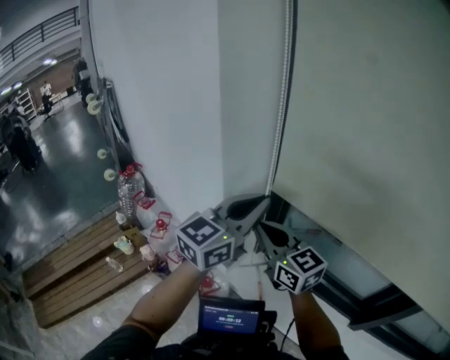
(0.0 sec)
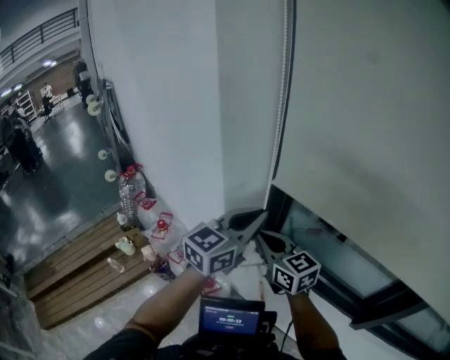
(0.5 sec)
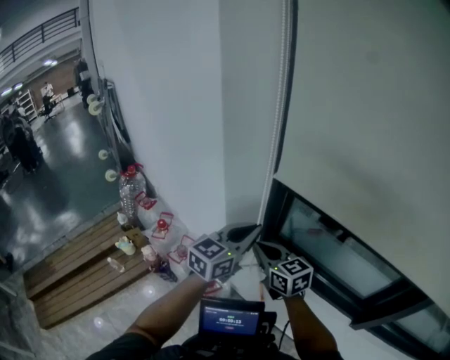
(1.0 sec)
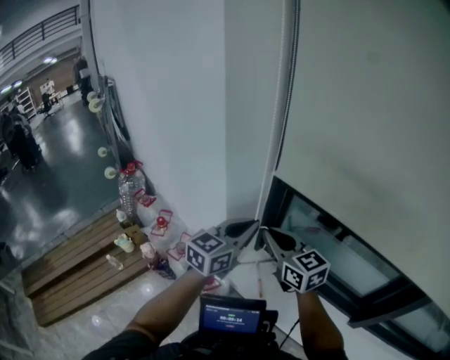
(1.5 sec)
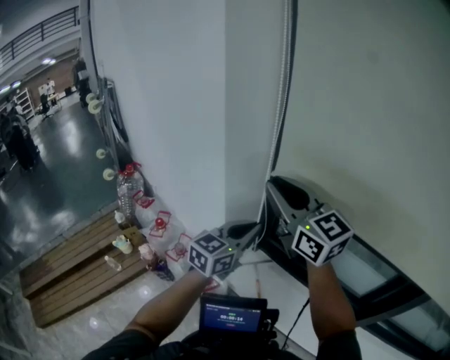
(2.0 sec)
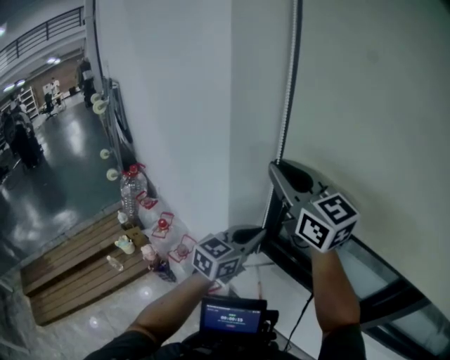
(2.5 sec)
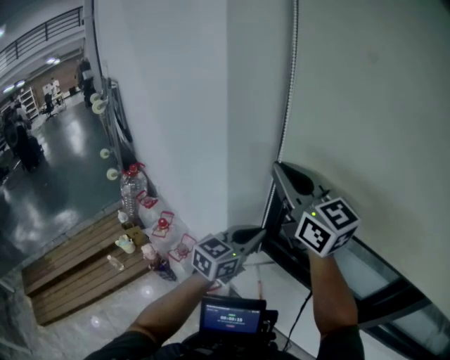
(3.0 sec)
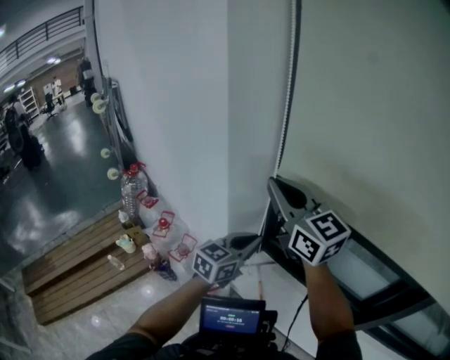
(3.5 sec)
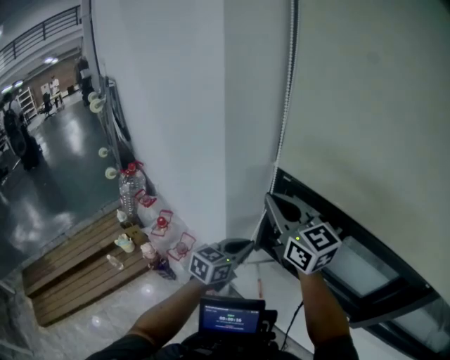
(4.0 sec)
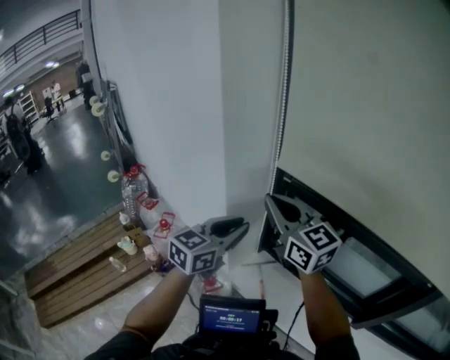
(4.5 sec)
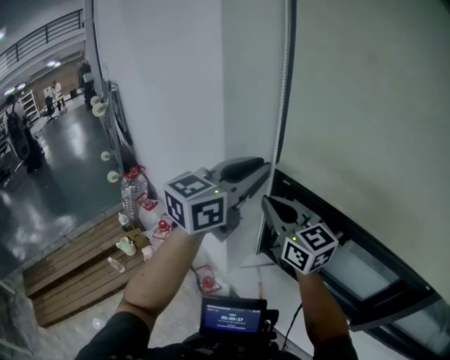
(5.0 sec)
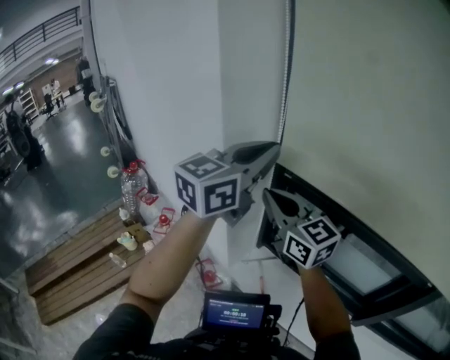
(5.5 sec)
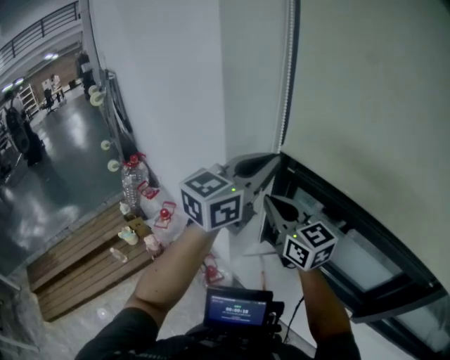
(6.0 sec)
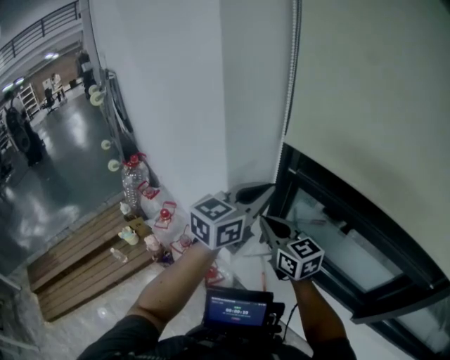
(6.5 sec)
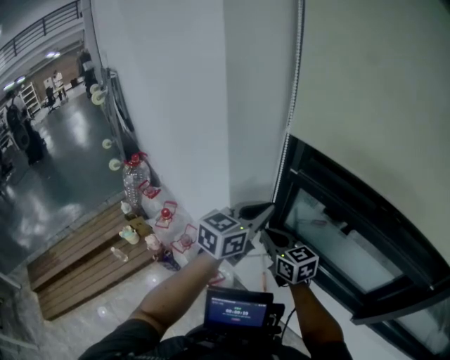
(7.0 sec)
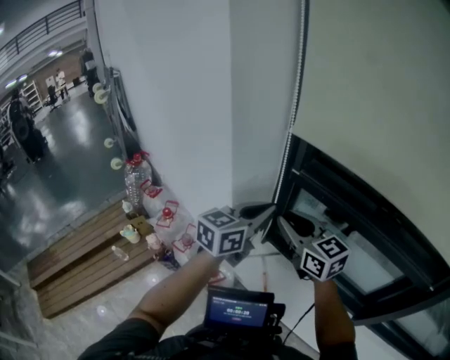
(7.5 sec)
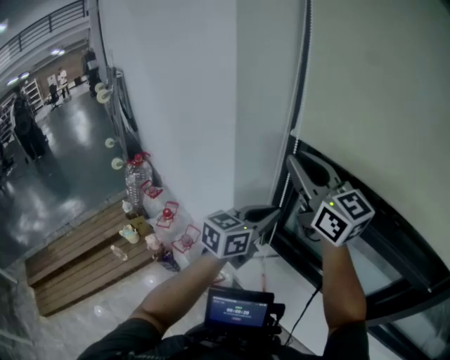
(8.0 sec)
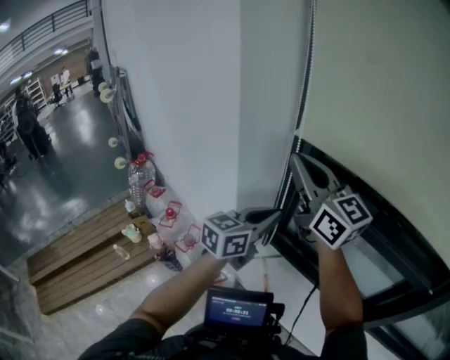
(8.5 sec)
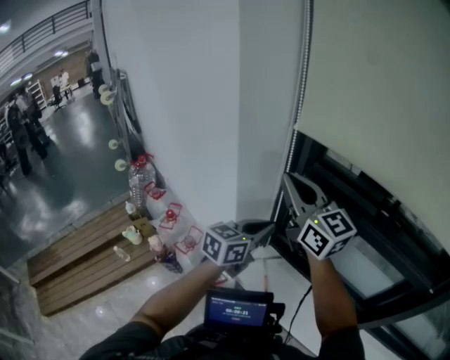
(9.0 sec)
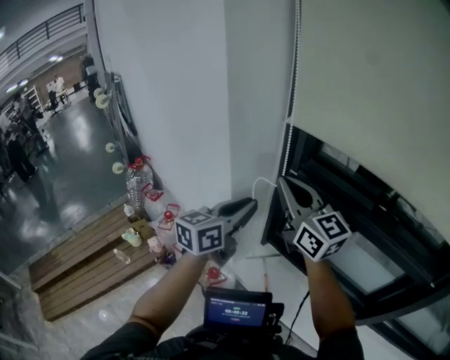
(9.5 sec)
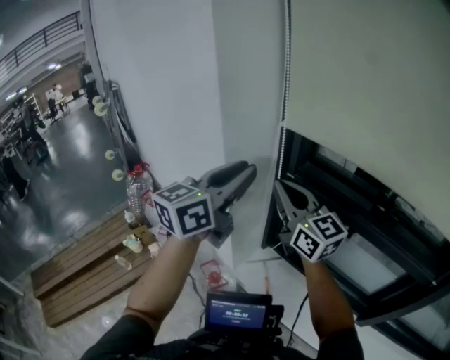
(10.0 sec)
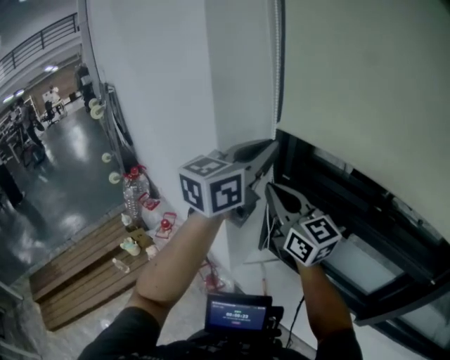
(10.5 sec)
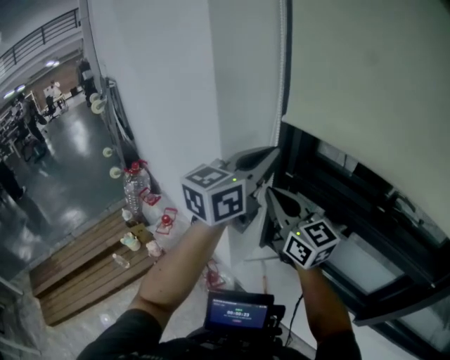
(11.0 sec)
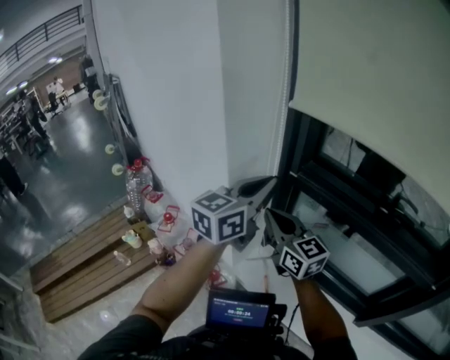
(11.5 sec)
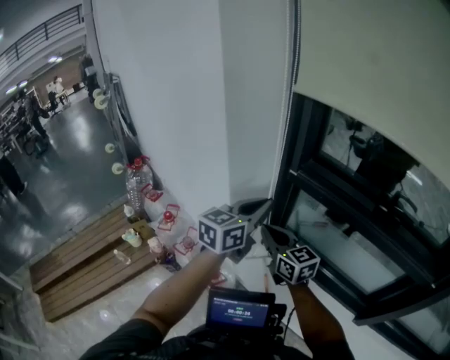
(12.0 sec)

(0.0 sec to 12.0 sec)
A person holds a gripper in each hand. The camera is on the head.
0.0 sec - 2.0 sec: The left gripper shifts approximately 10 cm downward. The right gripper travels upward by about 10 cm.
2.0 sec - 4.0 sec: The left gripper goes roughly 10 cm downward, while the right gripper is displaced downward by roughly 5 cm.
4.0 sec - 6.0 sec: The left gripper goes some 25 cm upward, and rotates approximately 20 degrees.
6.0 sec - 8.0 sec: The right gripper goes about 15 cm upward; the left gripper goes some 15 cm downward.
8.0 sec - 10.0 sec: The right gripper travels downward by approximately 5 cm. Meanwhile the left gripper goes roughly 15 cm upward and to the left, and opens its fingers.
10.0 sec - 12.0 sec: The grippers both shift downward by roughly 15 cm. The left gripper closes its fingers.

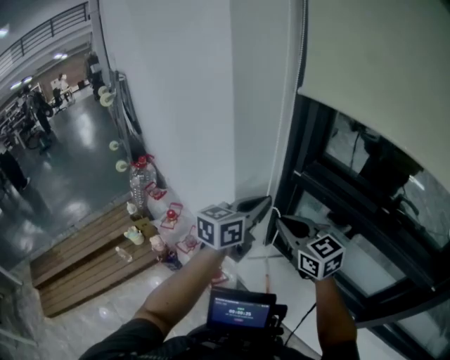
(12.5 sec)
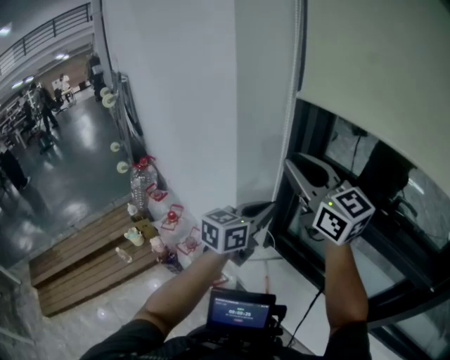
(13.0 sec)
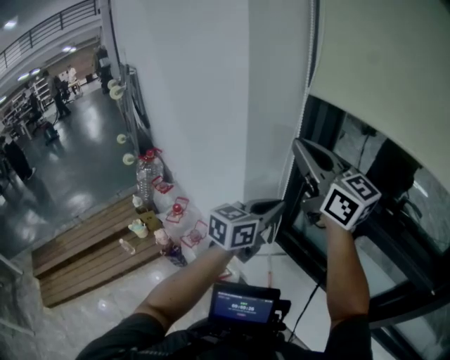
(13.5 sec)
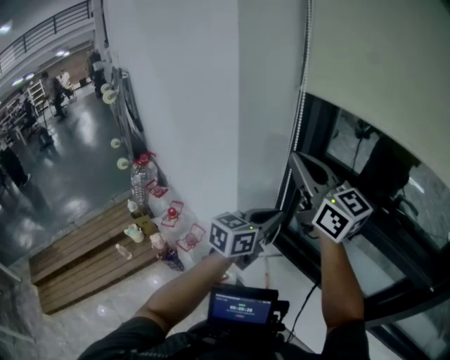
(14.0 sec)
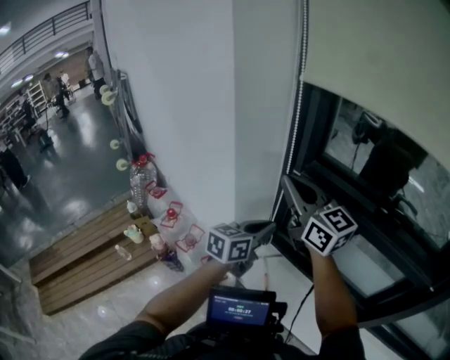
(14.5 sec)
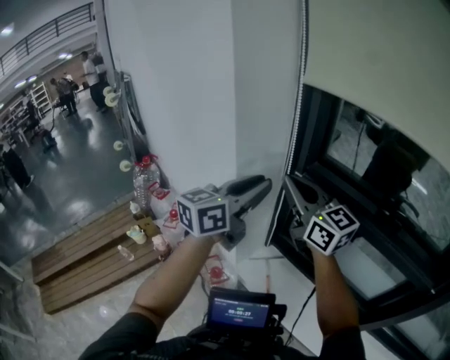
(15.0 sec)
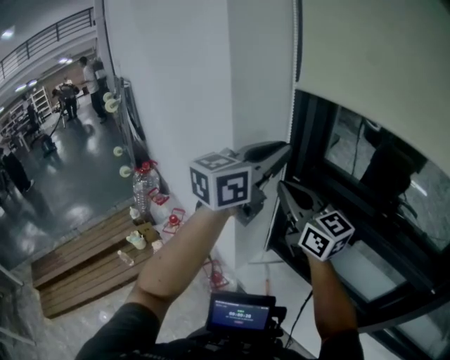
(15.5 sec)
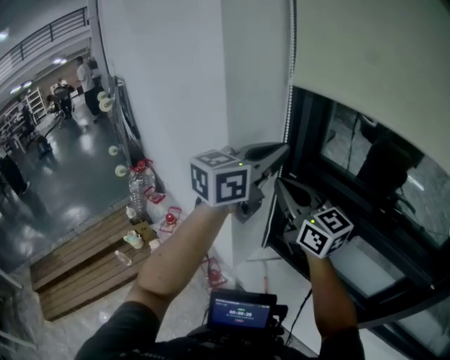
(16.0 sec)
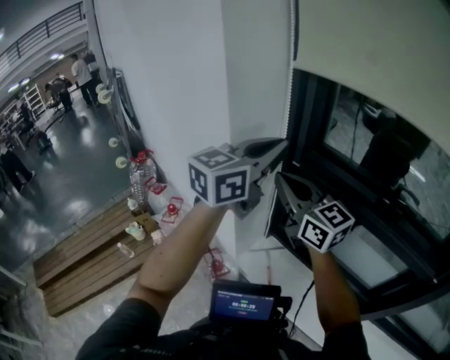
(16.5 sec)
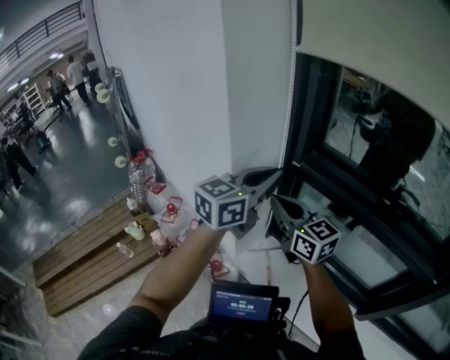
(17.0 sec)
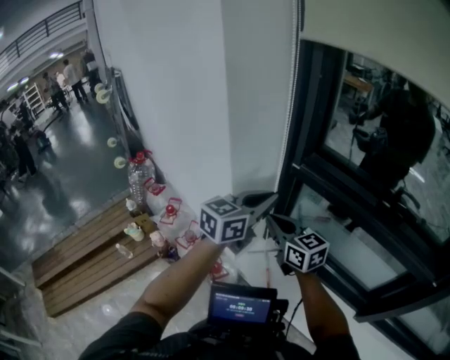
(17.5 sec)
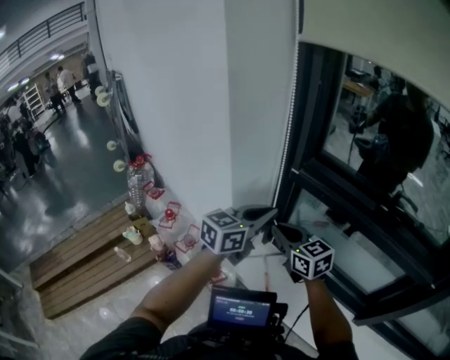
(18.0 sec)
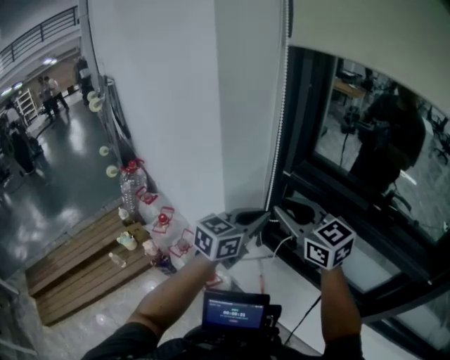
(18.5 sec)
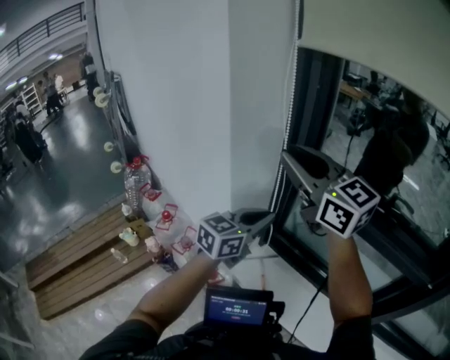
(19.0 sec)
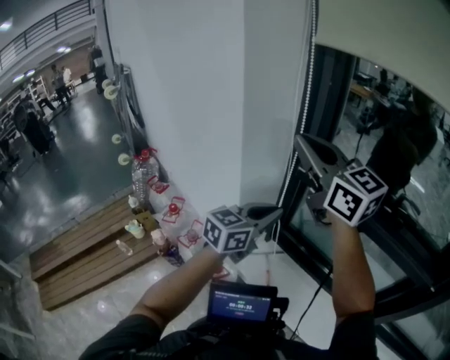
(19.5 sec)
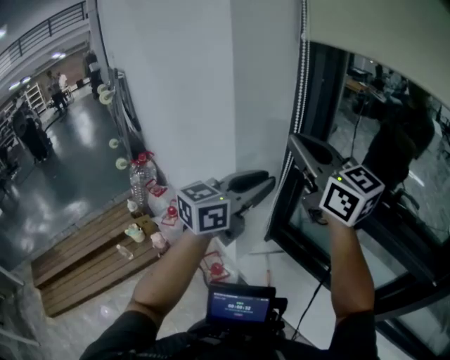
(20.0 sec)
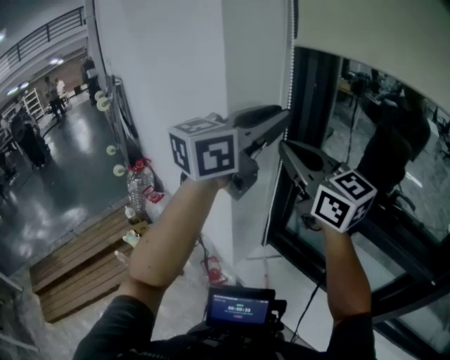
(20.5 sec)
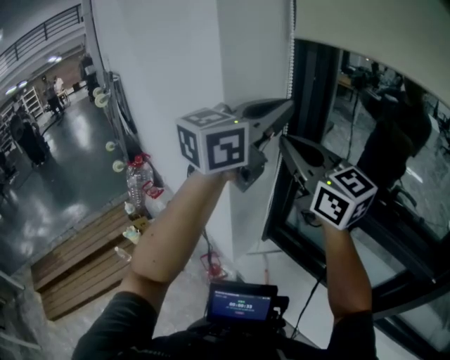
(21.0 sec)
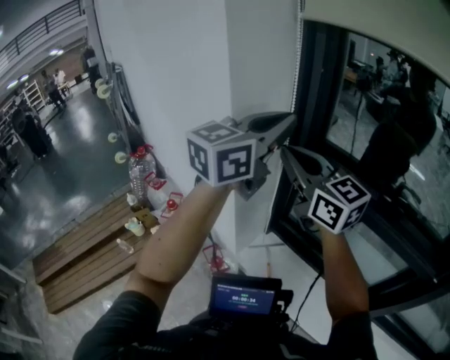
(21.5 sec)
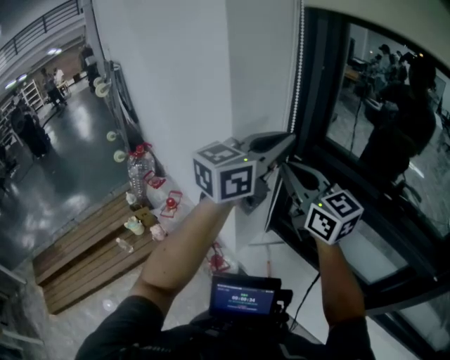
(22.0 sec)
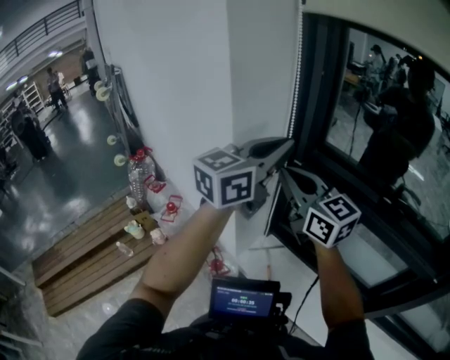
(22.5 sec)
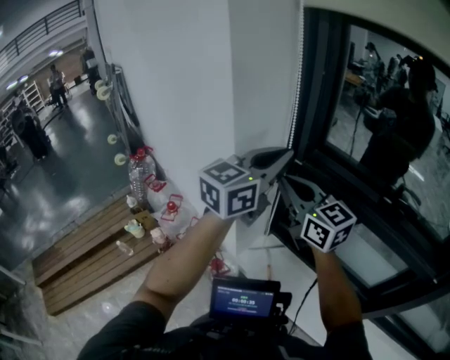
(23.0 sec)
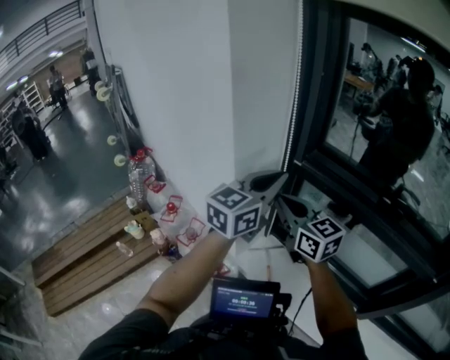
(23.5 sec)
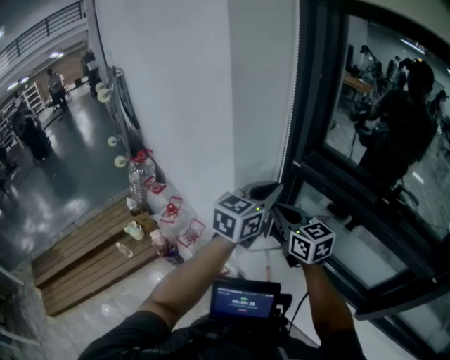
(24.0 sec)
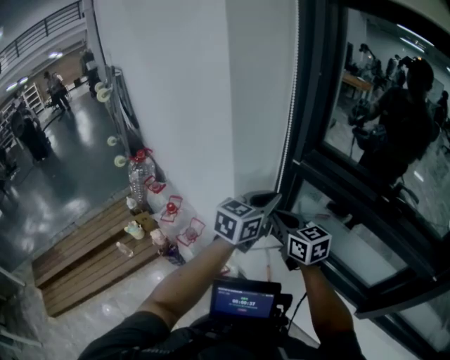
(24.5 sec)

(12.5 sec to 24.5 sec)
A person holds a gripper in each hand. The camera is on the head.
12.5 sec - 14.5 sec: The right gripper travels upward by approximately 10 cm, and swivels approximately 20 degrees; the left gripper travels downward by roughly 10 cm.
14.5 sec - 16.5 sec: The left gripper heads upward, covering some 25 cm, rotates some 30 degrees, and opens, then closes again.
16.5 sec - 18.5 sec: The left gripper shifts roughly 20 cm downward; the right gripper reaches some 15 cm downward, then returns, and opens up.
18.5 sec - 20.5 sec: The left gripper shifts roughly 25 cm upward, and opens. The right gripper moves upward, some 15 cm, and closes its fingers.
20.5 sec - 22.5 sec: The two grippers go roughly 10 cm downward. The left gripper closes its fingers.
22.5 sec - 24.5 sec: Both grippers move downward, roughly 15 cm.

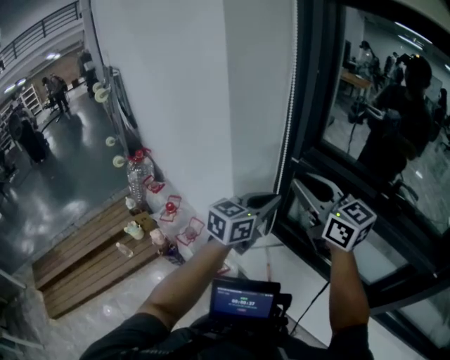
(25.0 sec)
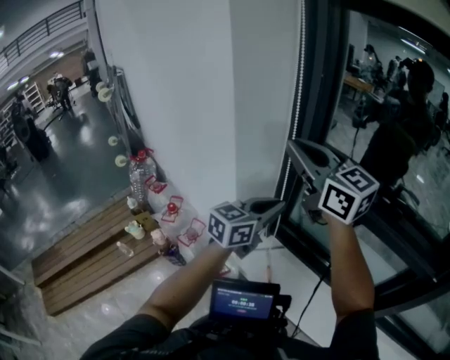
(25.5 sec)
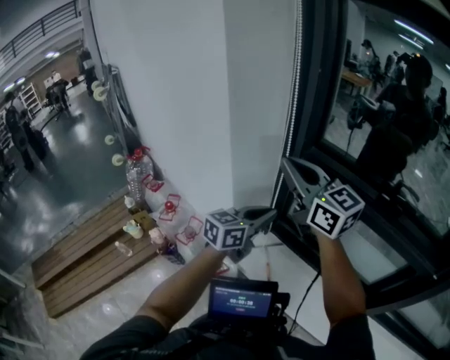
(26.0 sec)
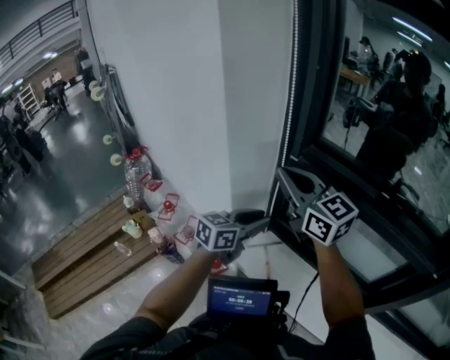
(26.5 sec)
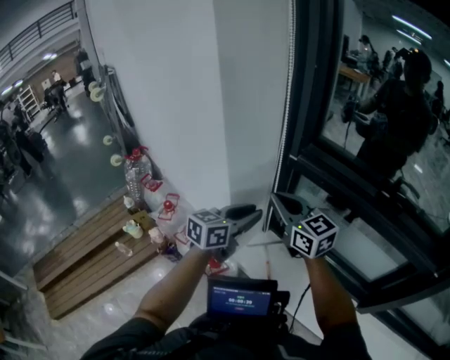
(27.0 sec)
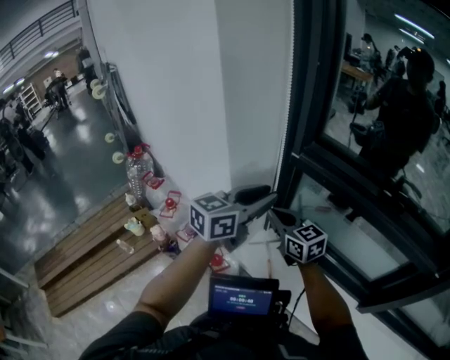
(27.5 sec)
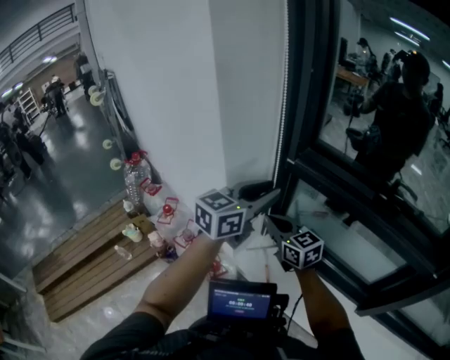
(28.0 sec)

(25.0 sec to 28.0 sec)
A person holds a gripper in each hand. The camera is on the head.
25.0 sec - 26.5 sec: The right gripper moves approximately 10 cm upward and comes back, and closes. The left gripper heads downward, covering about 10 cm, and opens.
26.5 sec - 28.0 sec: The right gripper heads downward, covering roughly 20 cm. Meanwhile the left gripper is displaced upward by some 10 cm.
